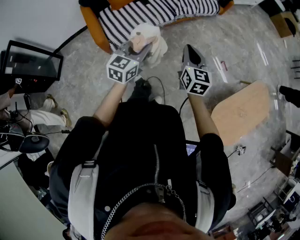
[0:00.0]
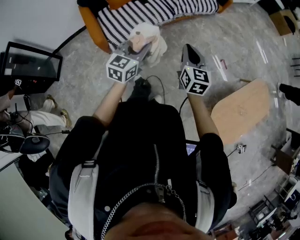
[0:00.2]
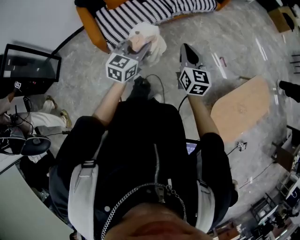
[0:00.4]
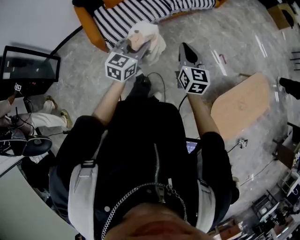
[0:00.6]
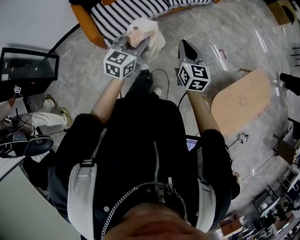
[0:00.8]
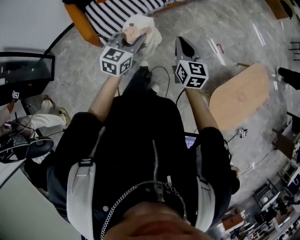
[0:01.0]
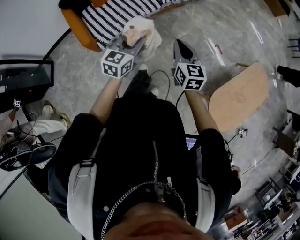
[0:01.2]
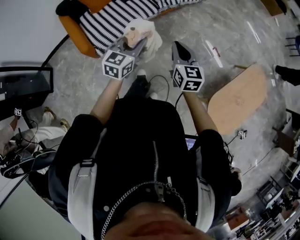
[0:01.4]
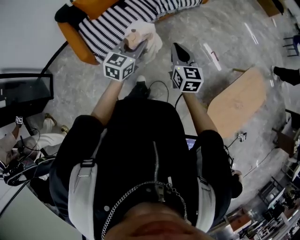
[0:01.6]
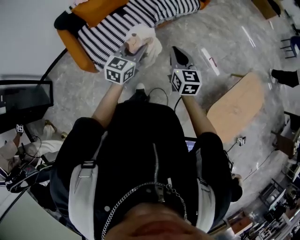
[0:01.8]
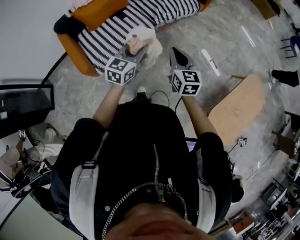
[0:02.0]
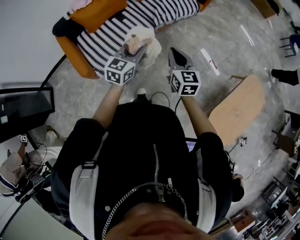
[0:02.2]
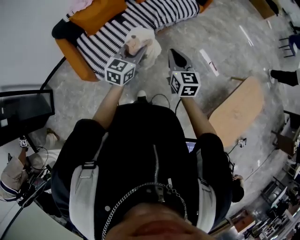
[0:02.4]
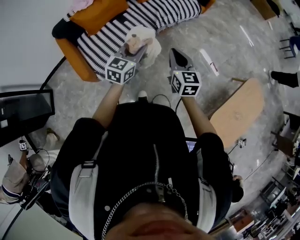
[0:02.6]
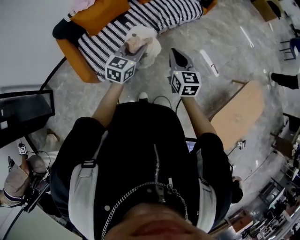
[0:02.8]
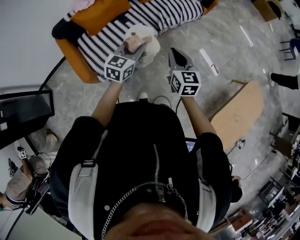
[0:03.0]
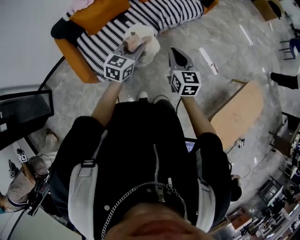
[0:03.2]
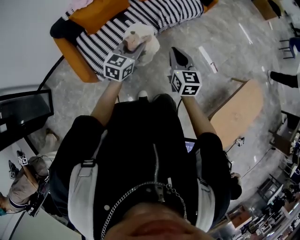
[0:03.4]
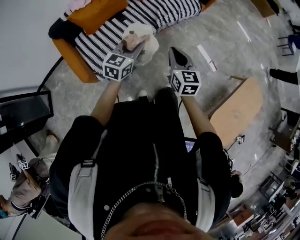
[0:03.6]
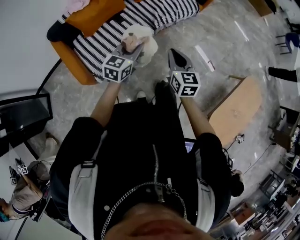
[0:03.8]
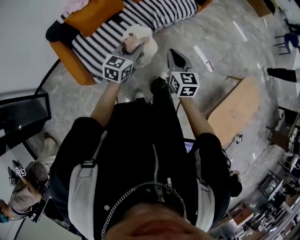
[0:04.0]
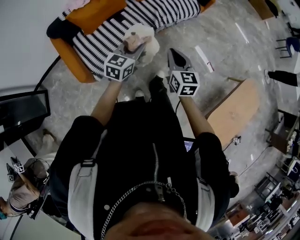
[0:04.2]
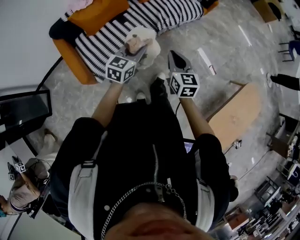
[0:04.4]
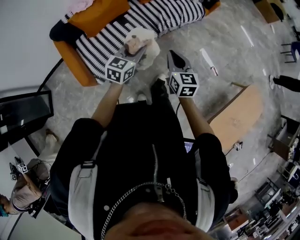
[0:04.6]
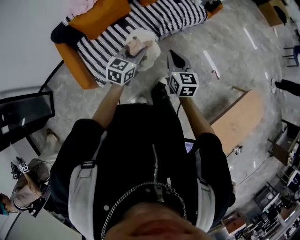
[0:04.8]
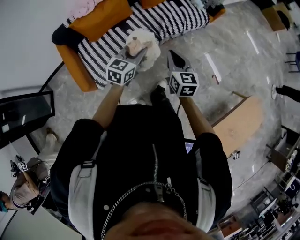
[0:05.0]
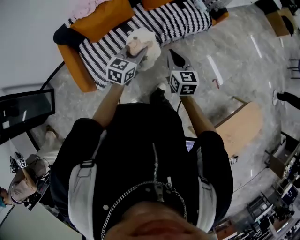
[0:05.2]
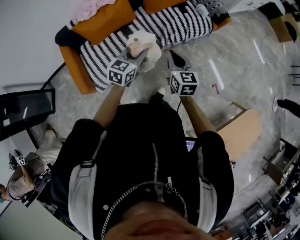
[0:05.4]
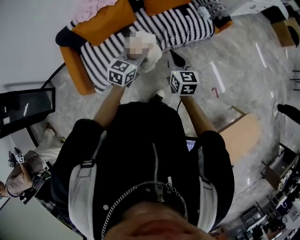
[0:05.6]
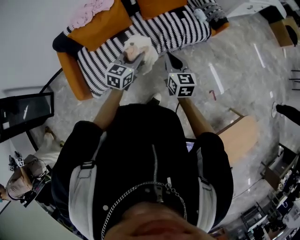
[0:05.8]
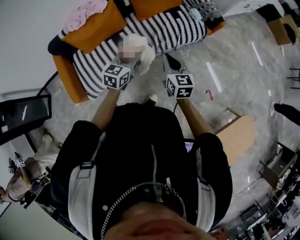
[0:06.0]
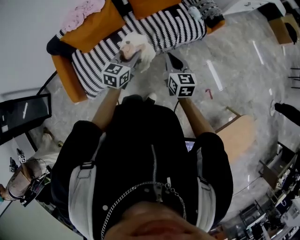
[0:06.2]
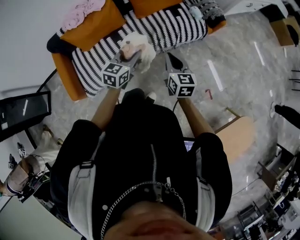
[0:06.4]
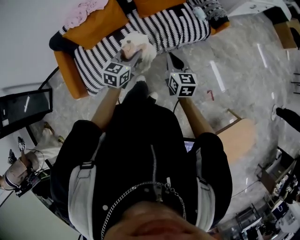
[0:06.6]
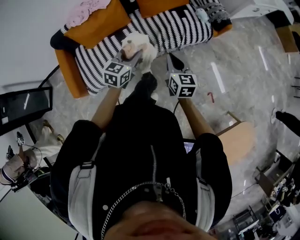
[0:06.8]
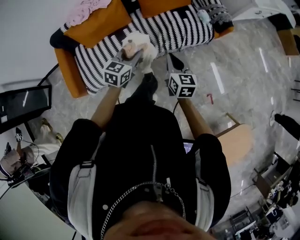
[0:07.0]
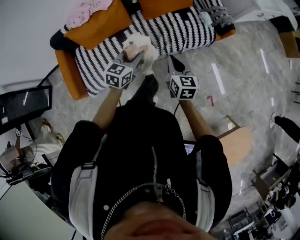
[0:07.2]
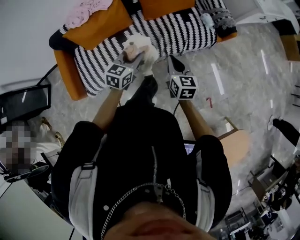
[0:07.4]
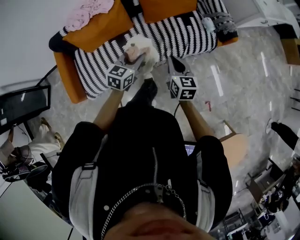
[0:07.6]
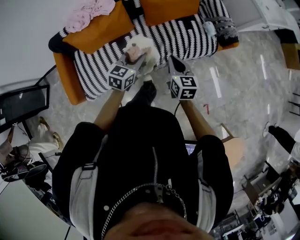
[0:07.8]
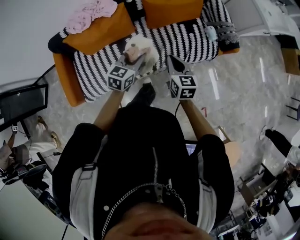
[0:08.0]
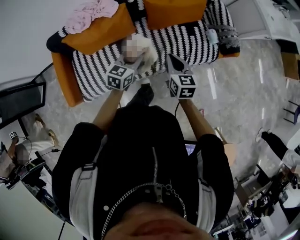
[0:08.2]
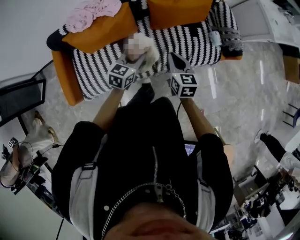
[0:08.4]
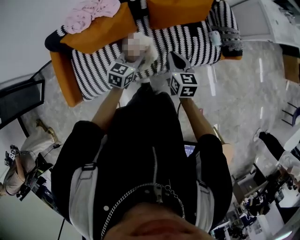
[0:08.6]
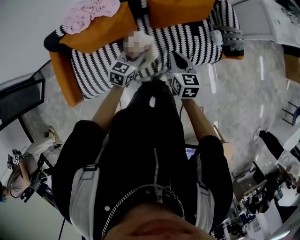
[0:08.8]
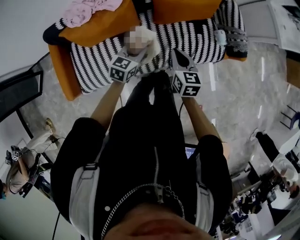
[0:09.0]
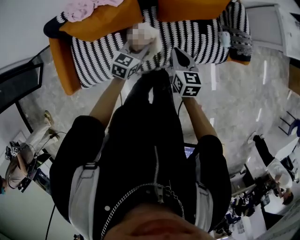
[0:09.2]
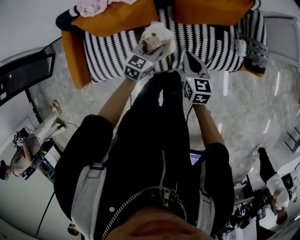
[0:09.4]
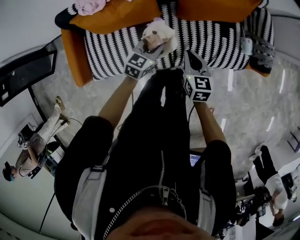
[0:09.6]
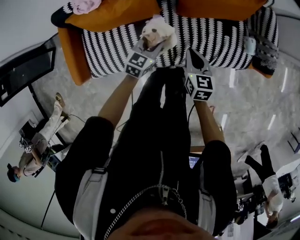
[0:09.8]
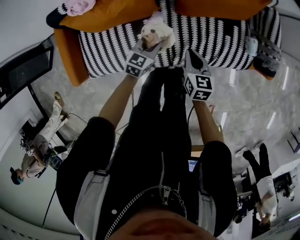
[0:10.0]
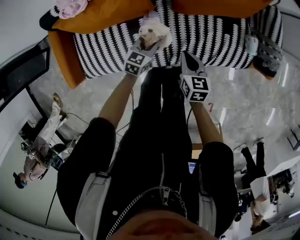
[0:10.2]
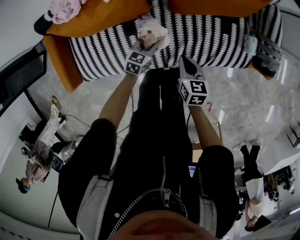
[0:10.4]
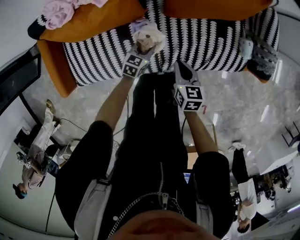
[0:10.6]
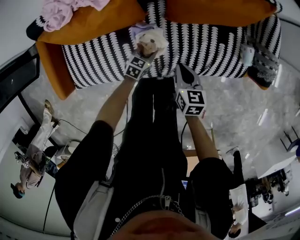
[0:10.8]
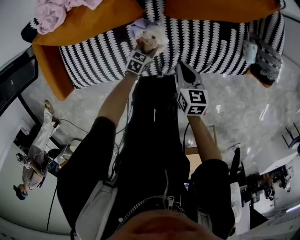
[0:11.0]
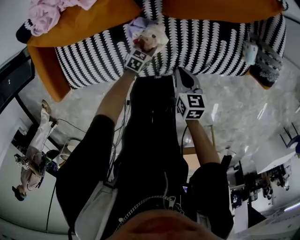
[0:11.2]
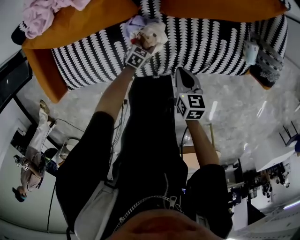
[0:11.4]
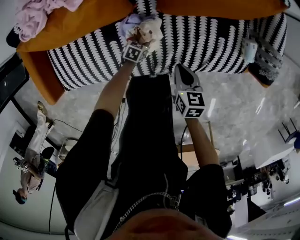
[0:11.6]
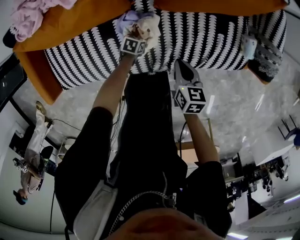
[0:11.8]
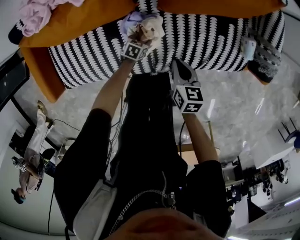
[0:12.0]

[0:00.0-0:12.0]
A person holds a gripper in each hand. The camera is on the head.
0:00.0 to 0:01.6: Both grippers move forward, about 10 cm.
0:01.6 to 0:03.0: Both grippers move forward and to the left, roughly 15 cm.
0:03.0 to 0:04.4: The grippers move only a little.
0:04.4 to 0:06.0: The two grippers go roughly 20 cm forward.
0:06.0 to 0:07.6: The grippers both shift forward by roughly 15 cm.
0:07.6 to 0:09.0: The grippers both shift forward and to the left by roughly 20 cm.
0:09.0 to 0:10.4: The grippers both shift downward and forward by about 30 cm.
0:10.4 to 0:12.0: The right gripper travels downward by roughly 5 cm, while the left gripper travels downward by approximately 20 cm, swivels approximately 20 degrees, and opens up.

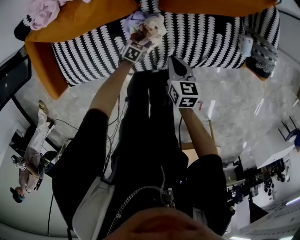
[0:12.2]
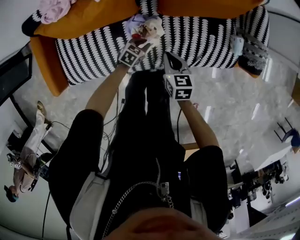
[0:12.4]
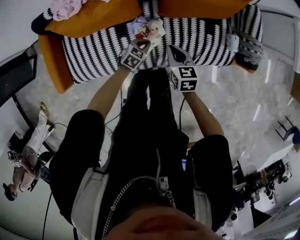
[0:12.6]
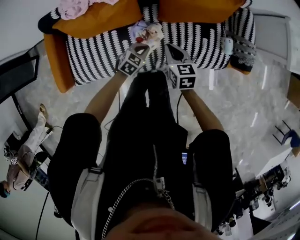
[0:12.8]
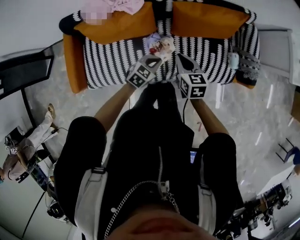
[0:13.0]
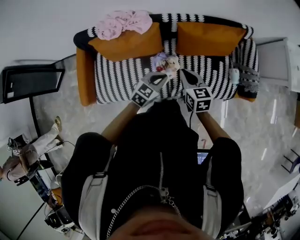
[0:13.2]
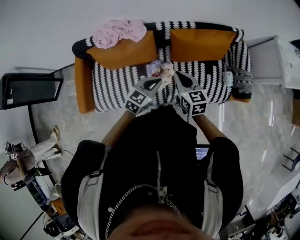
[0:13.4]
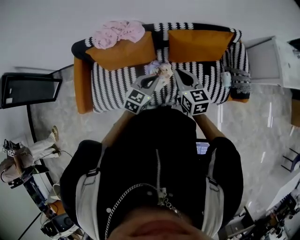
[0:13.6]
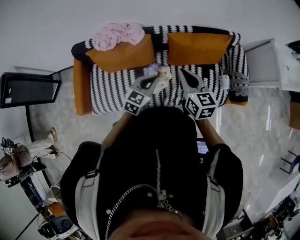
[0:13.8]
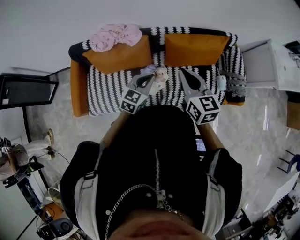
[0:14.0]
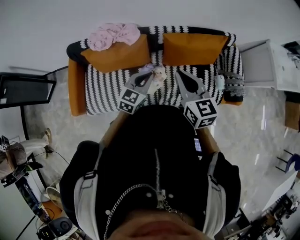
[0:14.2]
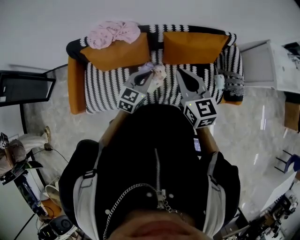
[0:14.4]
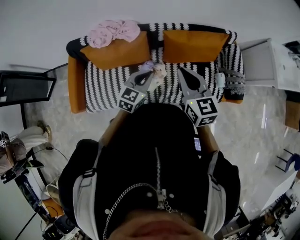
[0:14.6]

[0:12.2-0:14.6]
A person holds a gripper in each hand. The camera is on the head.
0:12.2 to 0:13.4: The left gripper travels upward by approximately 50 cm, rotates some 40 degrees, and closes up, while the right gripper travels upward by approximately 30 cm, and swivels about 30 degrees.
0:13.4 to 0:14.6: The right gripper moves upward, about 15 cm.

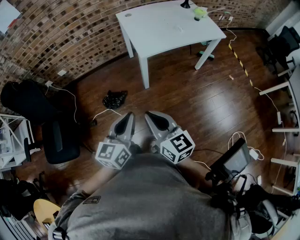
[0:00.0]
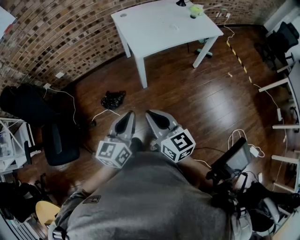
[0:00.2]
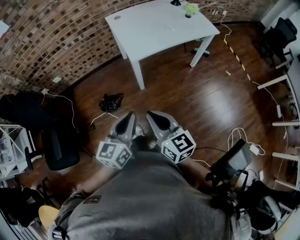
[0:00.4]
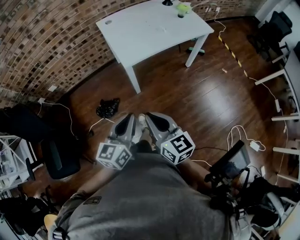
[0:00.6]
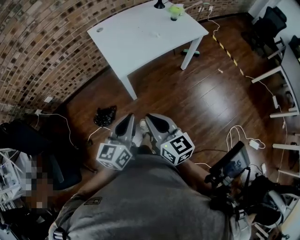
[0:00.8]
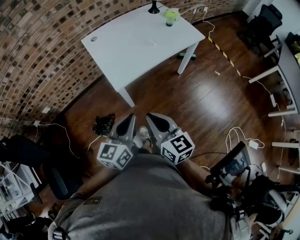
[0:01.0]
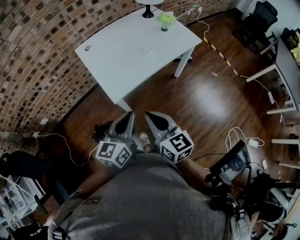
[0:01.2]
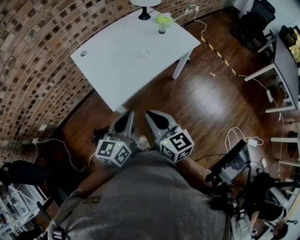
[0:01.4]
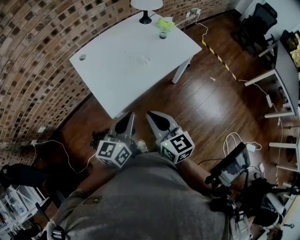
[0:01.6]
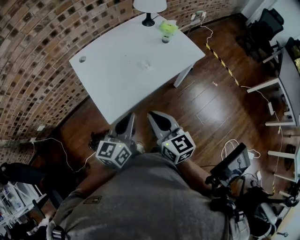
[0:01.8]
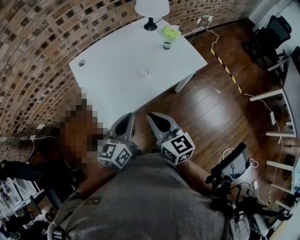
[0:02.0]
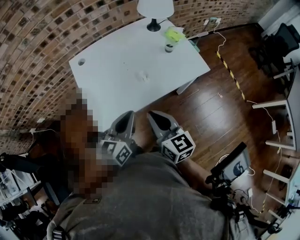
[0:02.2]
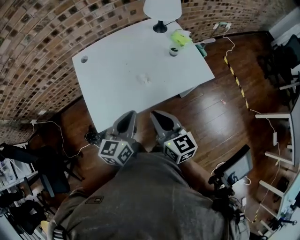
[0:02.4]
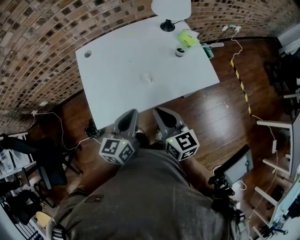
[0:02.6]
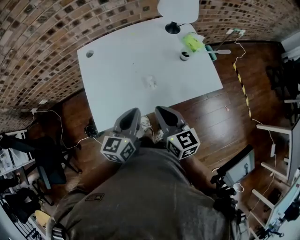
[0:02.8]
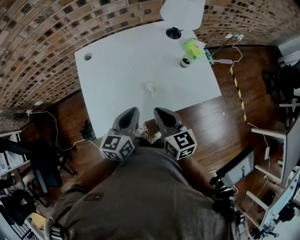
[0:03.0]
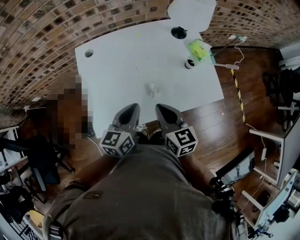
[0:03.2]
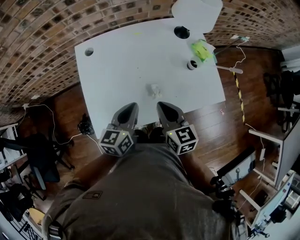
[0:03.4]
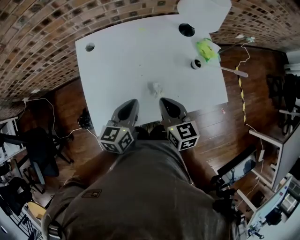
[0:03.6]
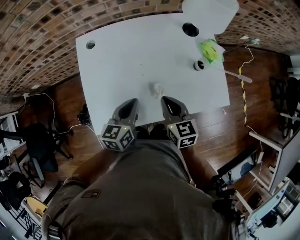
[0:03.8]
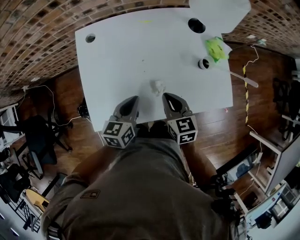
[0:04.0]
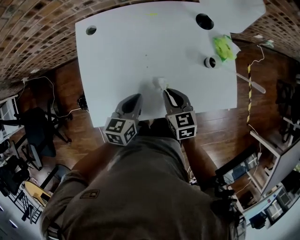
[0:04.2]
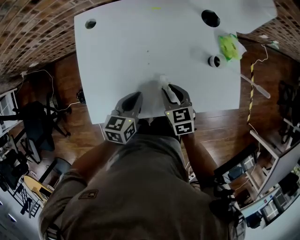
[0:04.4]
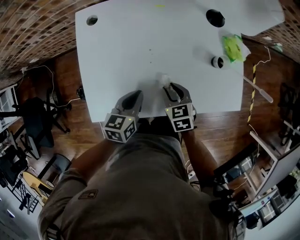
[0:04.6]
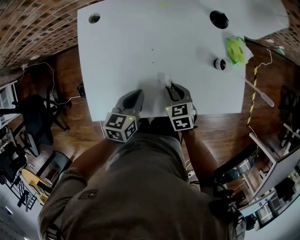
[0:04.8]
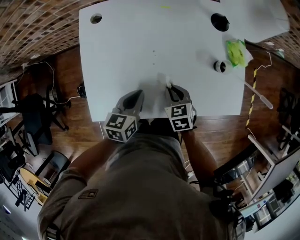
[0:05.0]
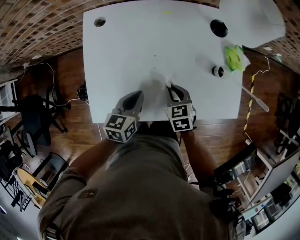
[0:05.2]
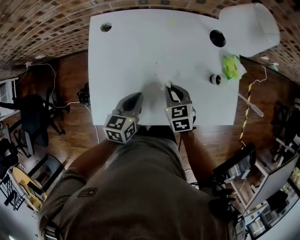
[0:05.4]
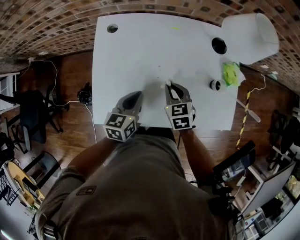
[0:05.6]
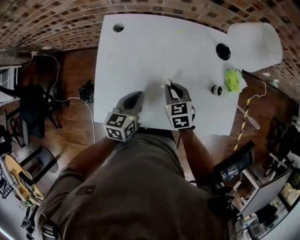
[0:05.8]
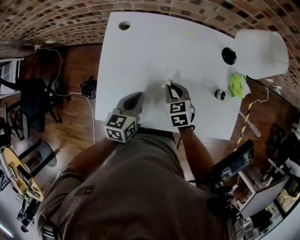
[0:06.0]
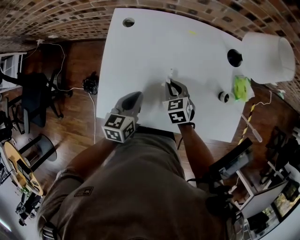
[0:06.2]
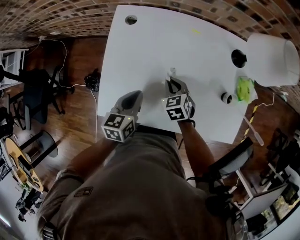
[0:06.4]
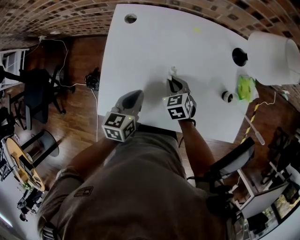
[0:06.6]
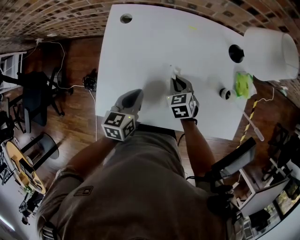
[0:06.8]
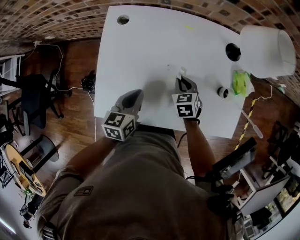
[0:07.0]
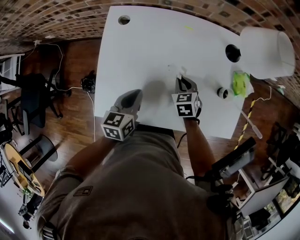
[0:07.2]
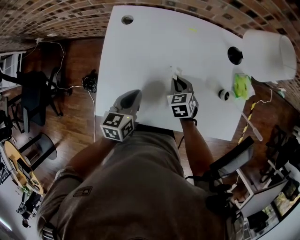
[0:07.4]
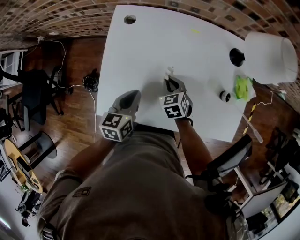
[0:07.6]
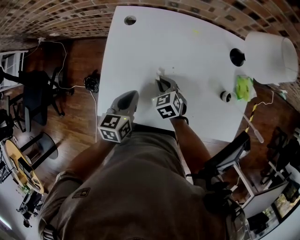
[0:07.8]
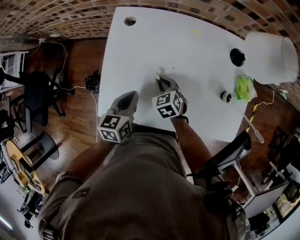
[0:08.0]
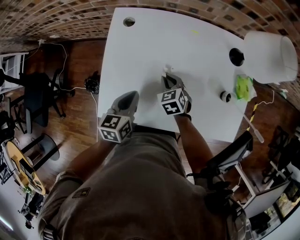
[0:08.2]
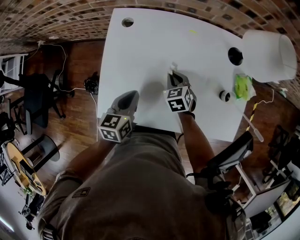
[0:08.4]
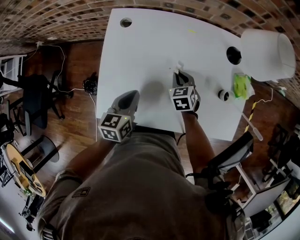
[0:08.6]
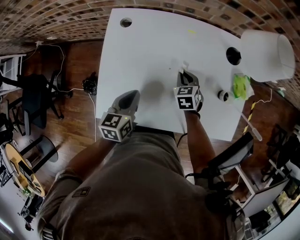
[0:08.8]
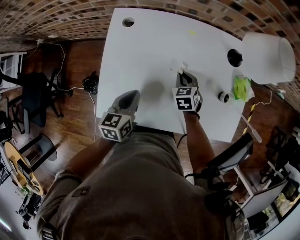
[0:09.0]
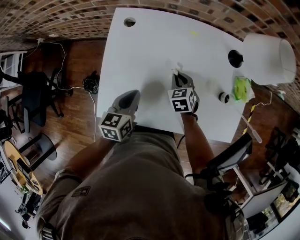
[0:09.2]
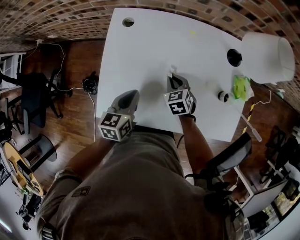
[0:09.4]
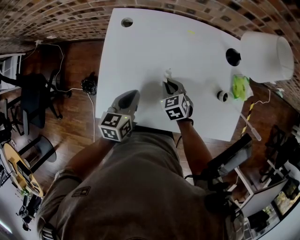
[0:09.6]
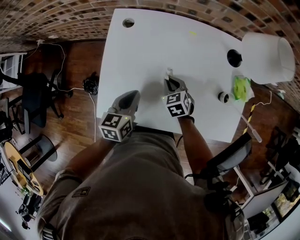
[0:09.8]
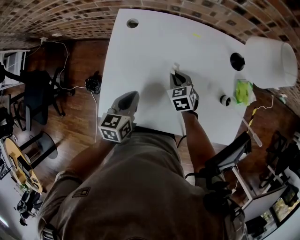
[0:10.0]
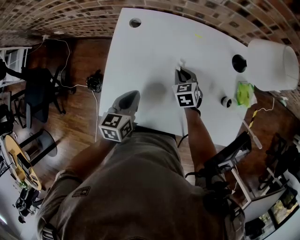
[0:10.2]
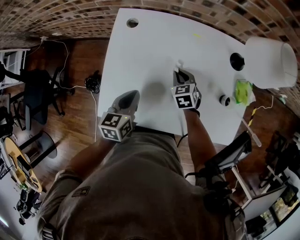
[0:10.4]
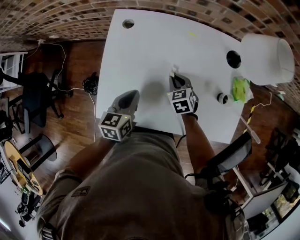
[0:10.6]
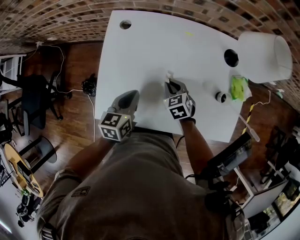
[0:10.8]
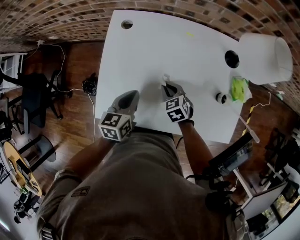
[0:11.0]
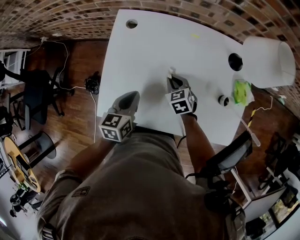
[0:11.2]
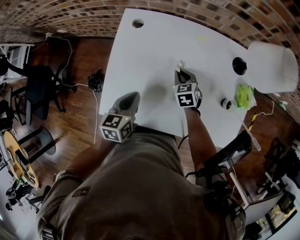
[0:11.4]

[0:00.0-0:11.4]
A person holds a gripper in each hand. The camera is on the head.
0:00.0 to 0:01.4: The two grippers go about 30 cm forward and to the right.
0:01.4 to 0:02.8: Both grippers travel together forward and to the right, some 25 cm. The left gripper rotates approximately 20 degrees.
0:02.8 to 0:04.2: The two grippers go about 15 cm downward and forward. The right gripper changes its angle by some 30 degrees.
0:04.2 to 0:05.6: The right gripper goes about 5 cm forward, and opens, then closes once more.
0:05.6 to 0:07.2: The right gripper is displaced downward by some 5 cm.
0:07.2 to 0:08.6: The right gripper goes to the left and returns, roughly 10 cm each way.
0:10.0 to 0:11.4: The right gripper goes backward and returns, some 5 cm each way.
